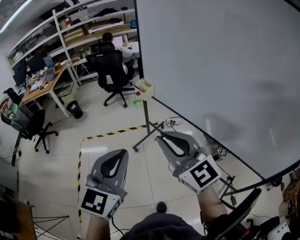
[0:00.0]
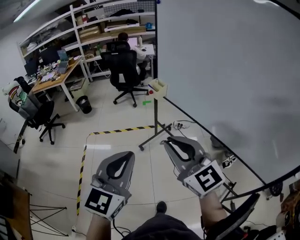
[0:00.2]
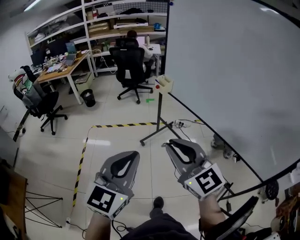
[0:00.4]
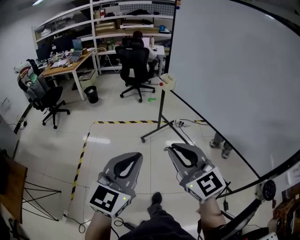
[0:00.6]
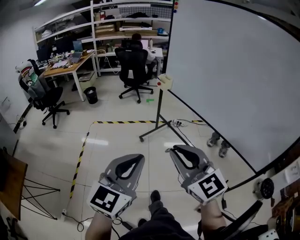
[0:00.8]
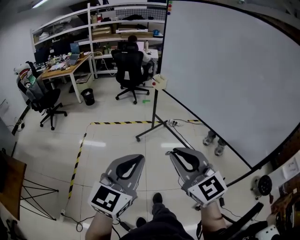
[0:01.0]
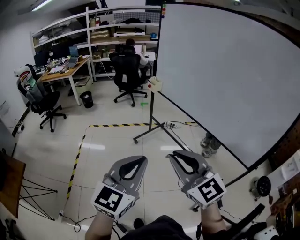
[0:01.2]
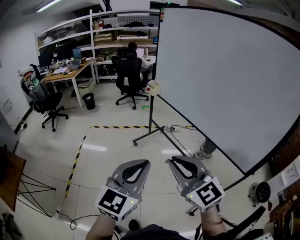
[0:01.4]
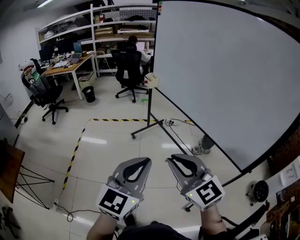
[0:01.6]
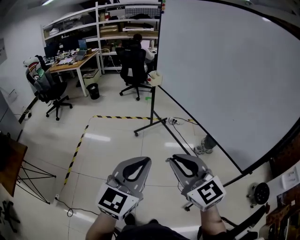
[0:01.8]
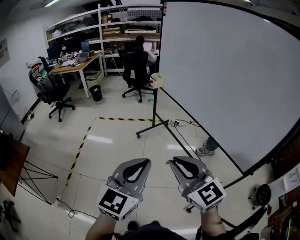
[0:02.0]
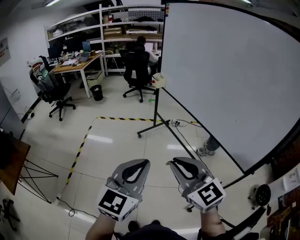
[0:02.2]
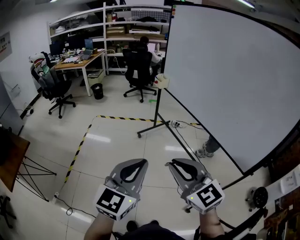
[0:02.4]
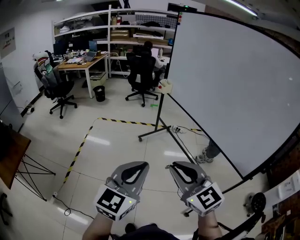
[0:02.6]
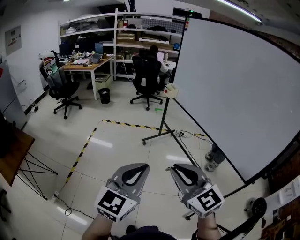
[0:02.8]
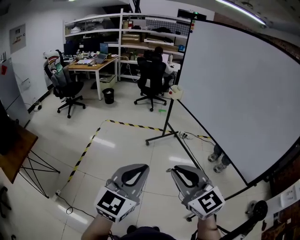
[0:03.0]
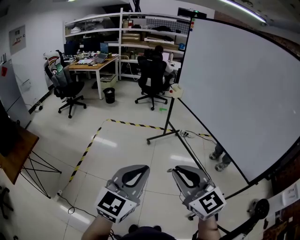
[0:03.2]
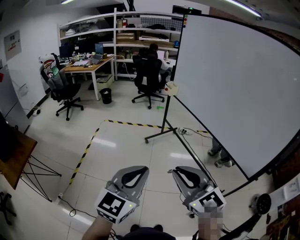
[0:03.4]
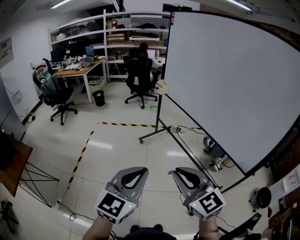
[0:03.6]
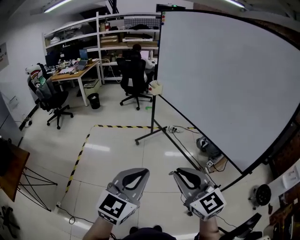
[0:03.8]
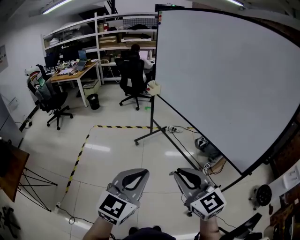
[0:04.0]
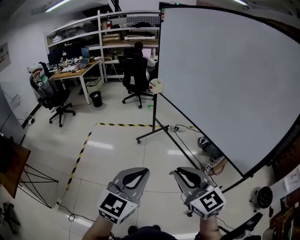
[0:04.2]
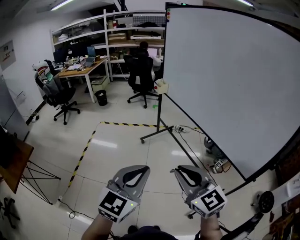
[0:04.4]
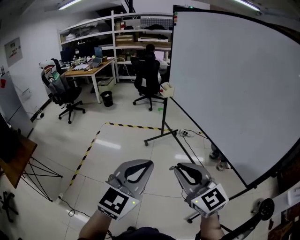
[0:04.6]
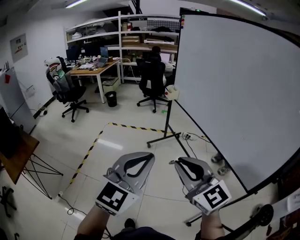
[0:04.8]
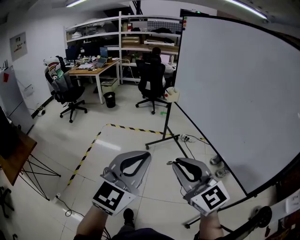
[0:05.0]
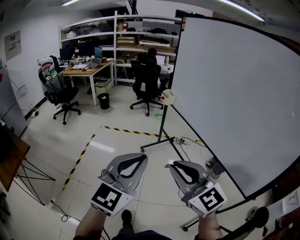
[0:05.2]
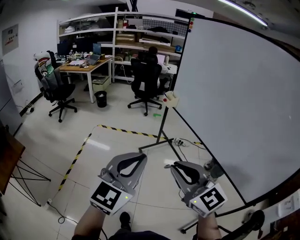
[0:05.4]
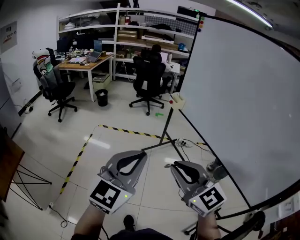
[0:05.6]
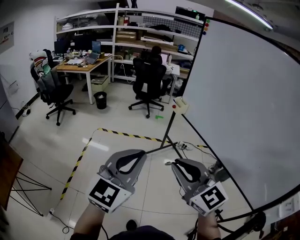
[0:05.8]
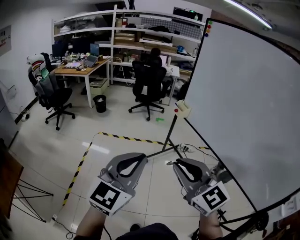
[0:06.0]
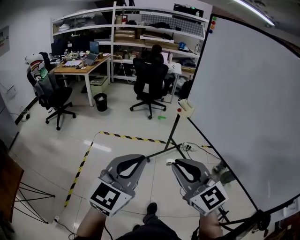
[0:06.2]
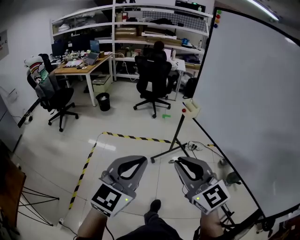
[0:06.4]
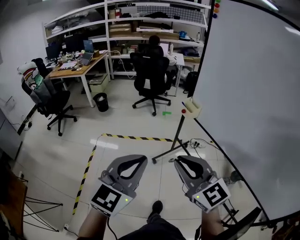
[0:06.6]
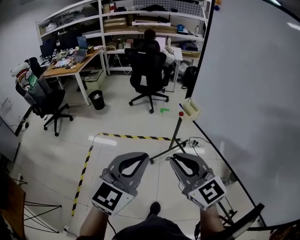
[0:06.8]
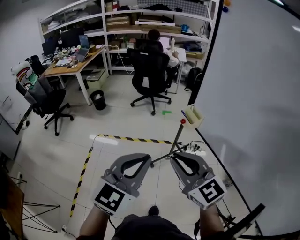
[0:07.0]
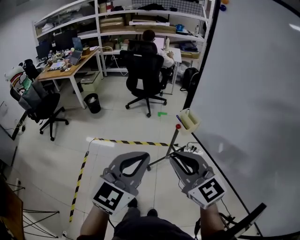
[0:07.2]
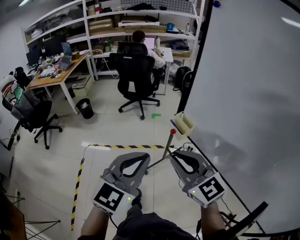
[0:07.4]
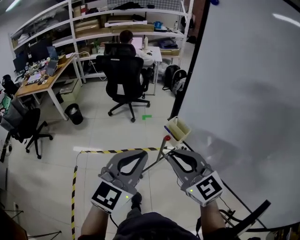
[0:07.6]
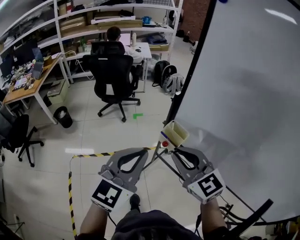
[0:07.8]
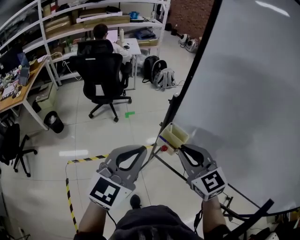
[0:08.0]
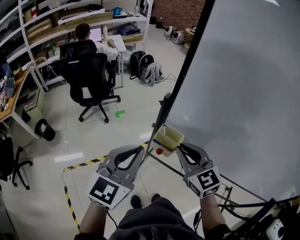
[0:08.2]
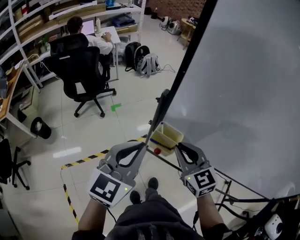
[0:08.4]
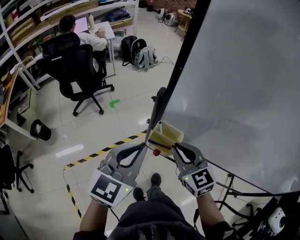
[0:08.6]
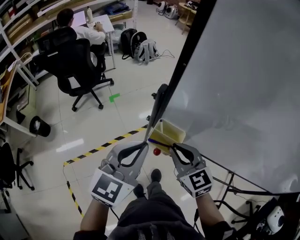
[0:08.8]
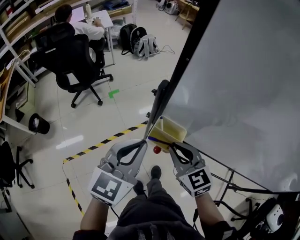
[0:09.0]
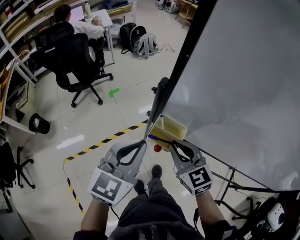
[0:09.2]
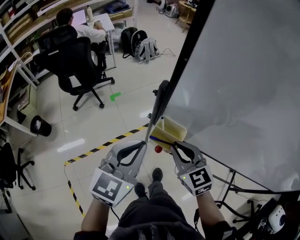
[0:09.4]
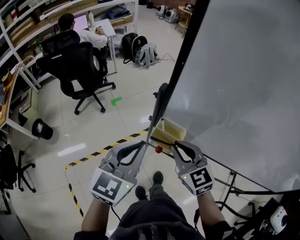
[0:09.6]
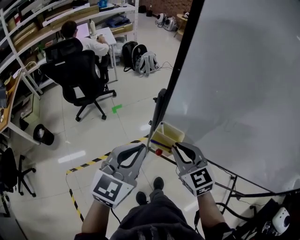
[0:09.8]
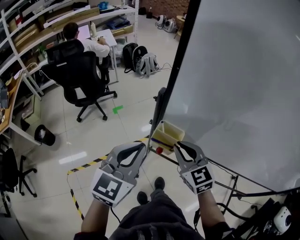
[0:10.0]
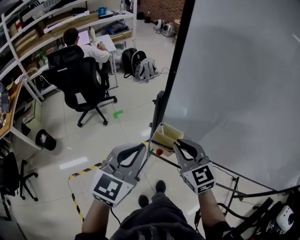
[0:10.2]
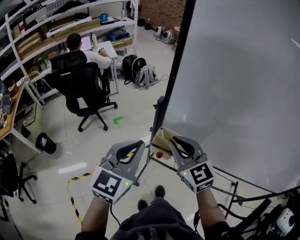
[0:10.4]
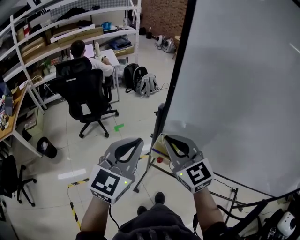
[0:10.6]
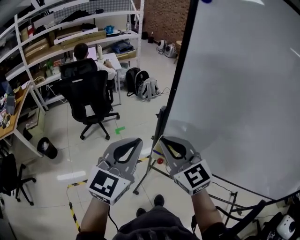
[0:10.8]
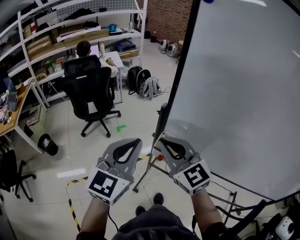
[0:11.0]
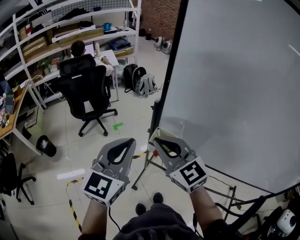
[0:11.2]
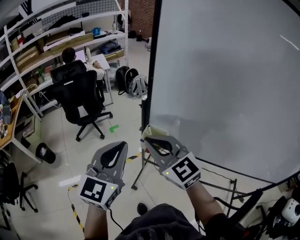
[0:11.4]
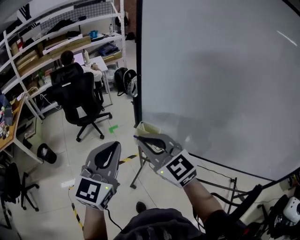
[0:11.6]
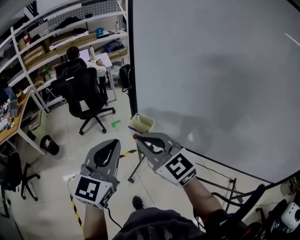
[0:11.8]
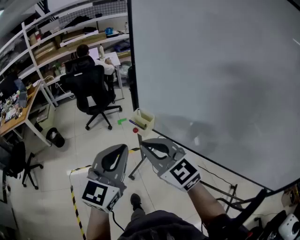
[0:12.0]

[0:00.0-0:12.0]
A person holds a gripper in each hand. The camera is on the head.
0:00.0 to 0:01.6: Both grippers travel together backward, approximately 35 cm.
0:01.6 to 0:03.0: The right gripper heads to the left and backward, covering roughly 10 cm. The left gripper moves to the left, about 10 cm.
0:03.0 to 0:04.4: Both grippers travel together to the right, approximately 15 cm.
0:04.4 to 0:06.0: The grippers both shift forward and to the left by approximately 35 cm.
0:06.0 to 0:07.6: Both grippers are carried forward, about 50 cm.
0:07.6 to 0:09.0: The left gripper moves roughly 25 cm, and rotates roughly 30 degrees. The right gripper ends up about 25 cm from where it was, and turns by about 40 degrees.
0:09.0 to 0:10.4: The left gripper moves upward, approximately 5 cm. The right gripper shifts some 10 cm upward.
0:10.4 to 0:12.0: Both grippers move backward, about 20 cm. The right gripper turns by about 30 degrees.

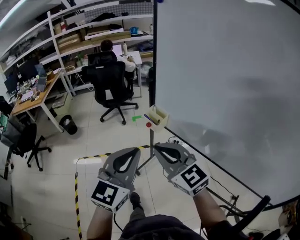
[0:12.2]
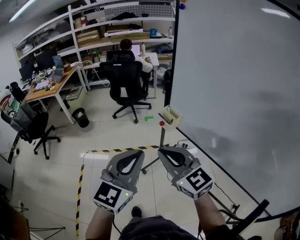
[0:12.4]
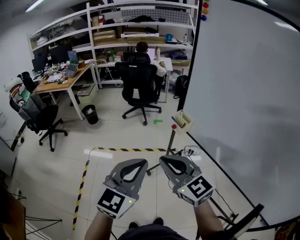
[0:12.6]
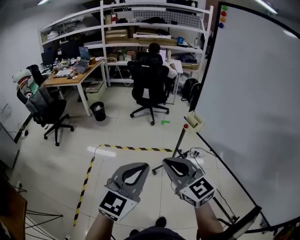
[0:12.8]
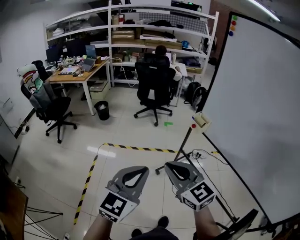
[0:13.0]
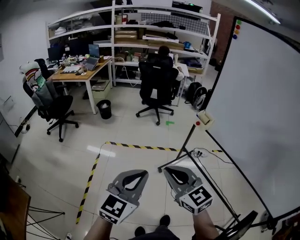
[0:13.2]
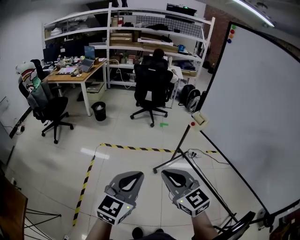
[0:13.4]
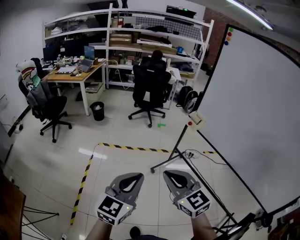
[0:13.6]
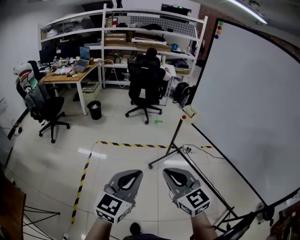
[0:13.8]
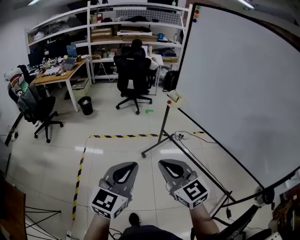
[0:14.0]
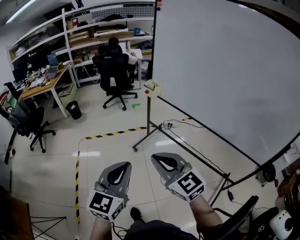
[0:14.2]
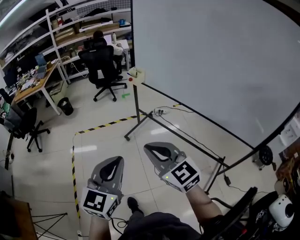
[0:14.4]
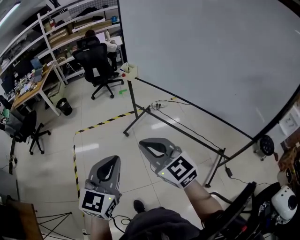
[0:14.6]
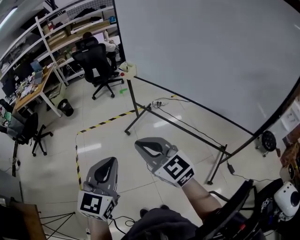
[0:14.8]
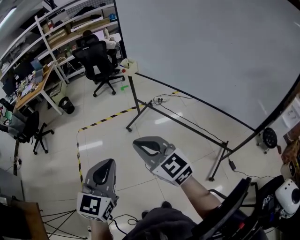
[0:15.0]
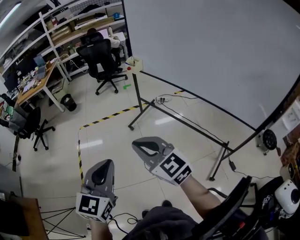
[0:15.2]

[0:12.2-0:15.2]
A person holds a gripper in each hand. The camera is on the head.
0:12.2 to 0:13.8: Both grippers move backward and to the left, about 35 cm.
0:13.8 to 0:15.2: The two grippers go roughly 25 cm backward and to the right.

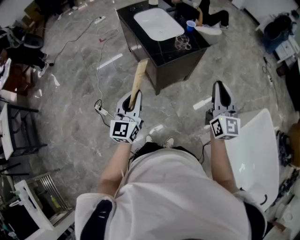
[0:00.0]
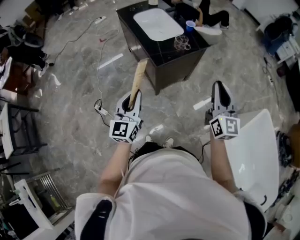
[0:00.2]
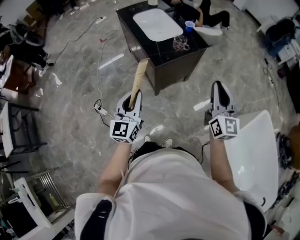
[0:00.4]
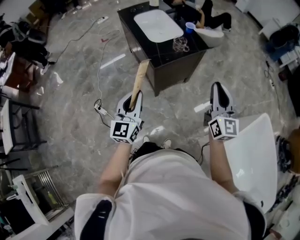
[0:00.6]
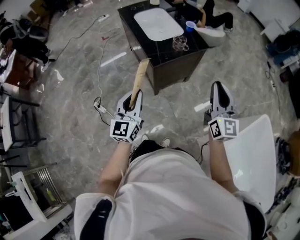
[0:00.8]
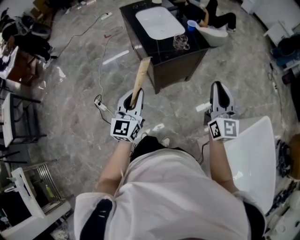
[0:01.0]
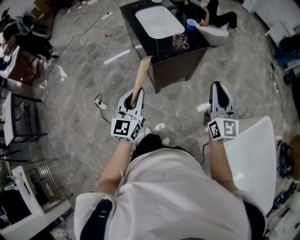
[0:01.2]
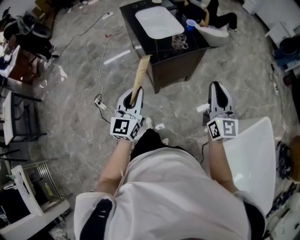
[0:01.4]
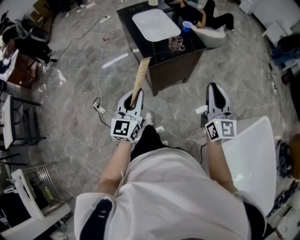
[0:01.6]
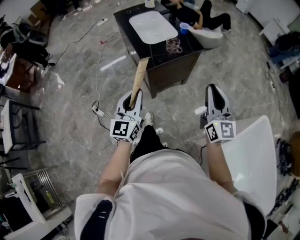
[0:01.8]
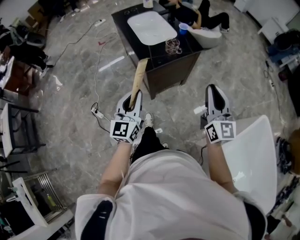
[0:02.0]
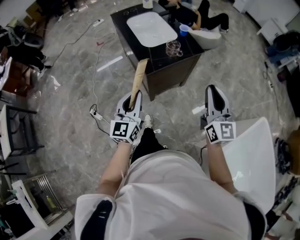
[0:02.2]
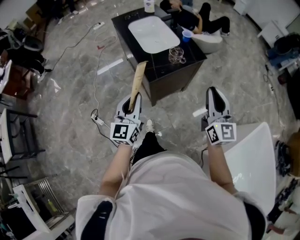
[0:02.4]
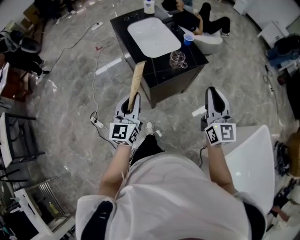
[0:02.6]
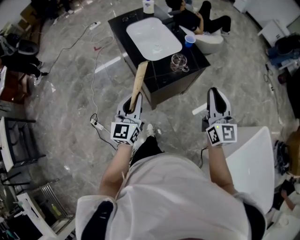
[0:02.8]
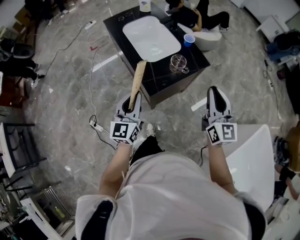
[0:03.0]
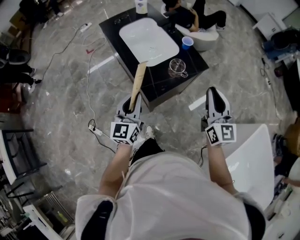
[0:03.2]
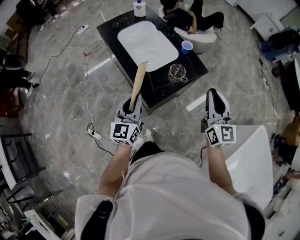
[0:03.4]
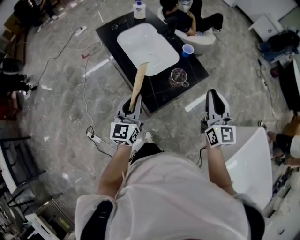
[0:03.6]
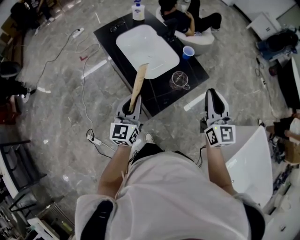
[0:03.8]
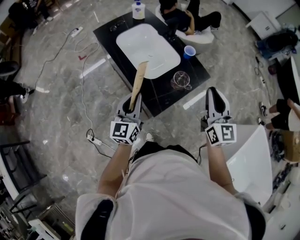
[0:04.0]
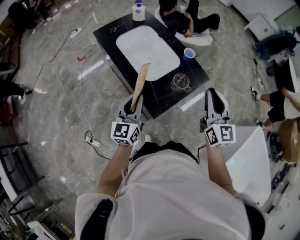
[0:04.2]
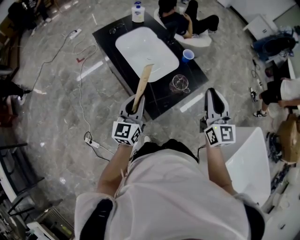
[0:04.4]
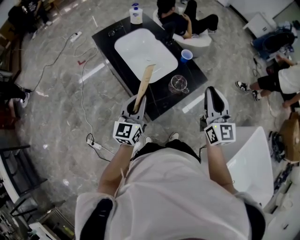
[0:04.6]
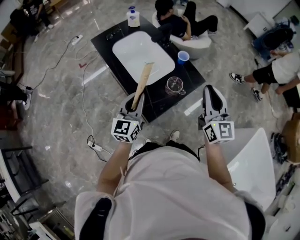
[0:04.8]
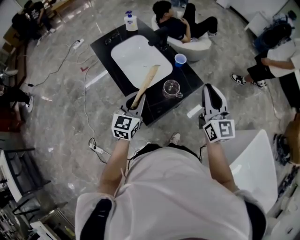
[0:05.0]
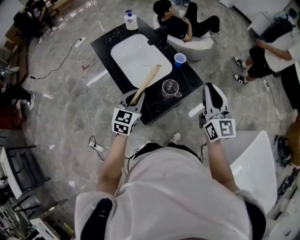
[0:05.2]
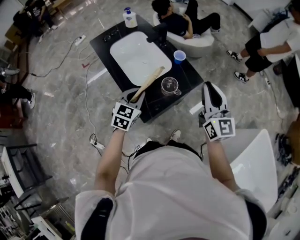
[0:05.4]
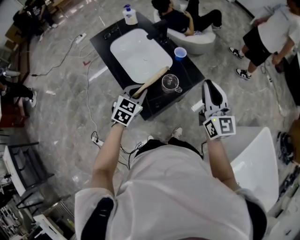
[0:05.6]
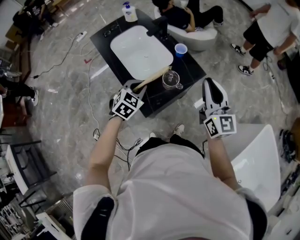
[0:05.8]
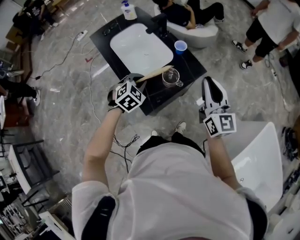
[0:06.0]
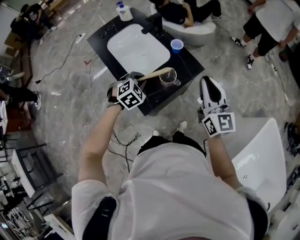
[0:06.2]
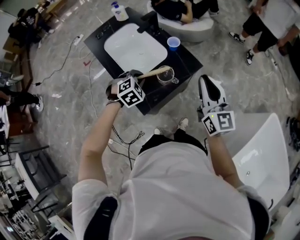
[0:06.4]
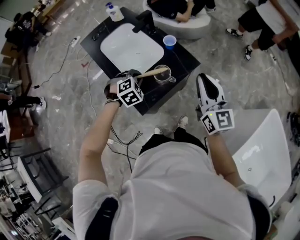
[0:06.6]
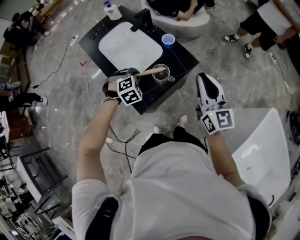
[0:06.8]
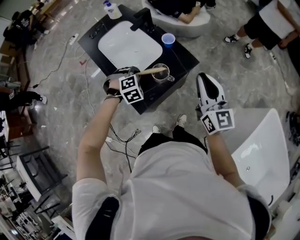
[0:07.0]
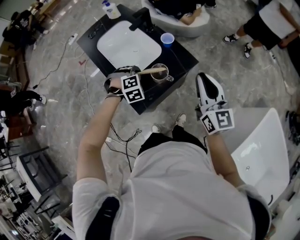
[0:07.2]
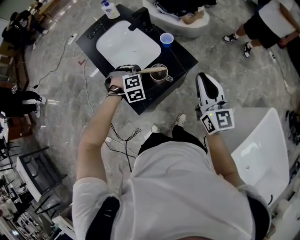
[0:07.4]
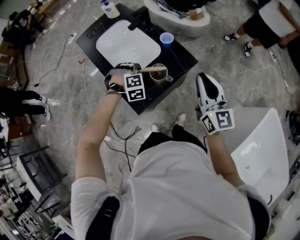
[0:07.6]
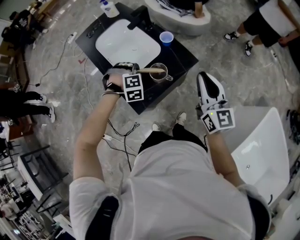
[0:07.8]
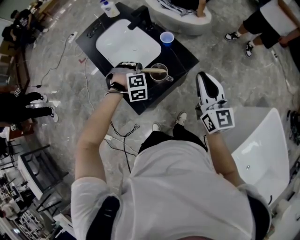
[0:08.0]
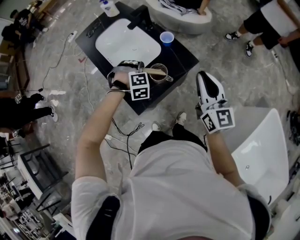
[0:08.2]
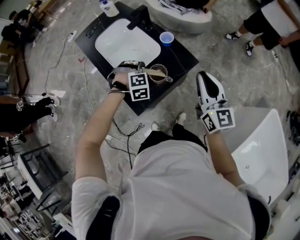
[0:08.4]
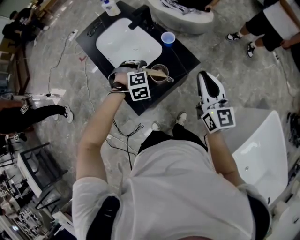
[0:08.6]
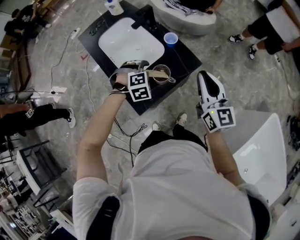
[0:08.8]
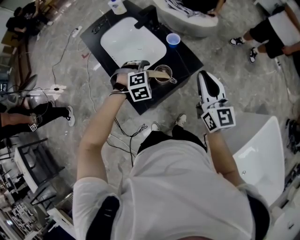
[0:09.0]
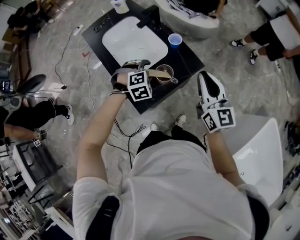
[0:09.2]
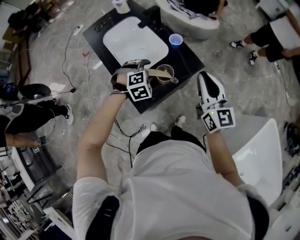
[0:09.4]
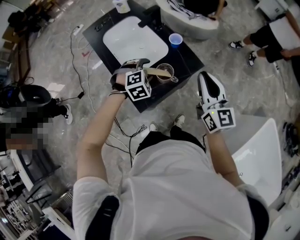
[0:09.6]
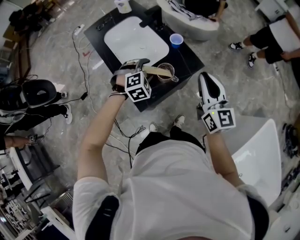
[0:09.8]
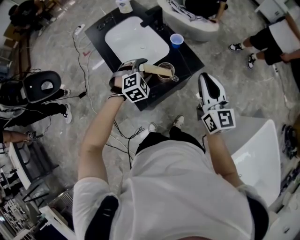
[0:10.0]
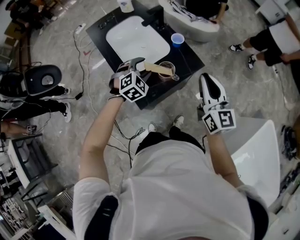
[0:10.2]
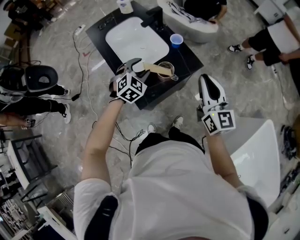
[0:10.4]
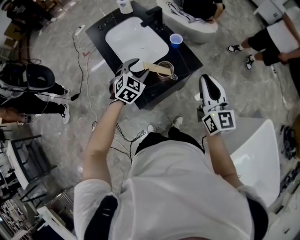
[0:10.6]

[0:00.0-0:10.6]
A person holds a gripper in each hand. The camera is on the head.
0:00.0 to 0:01.6: The left gripper moves to the right, roughly 10 cm.
0:01.6 to 0:03.0: Both grippers move forward, roughly 20 cm.
0:03.0 to 0:04.6: The right gripper travels forward and to the left by roughly 10 cm. The left gripper heads forward, covering about 15 cm.
0:04.6 to 0:06.0: The left gripper is displaced downward, forward and to the right by roughly 15 cm, and tips its fingers downward by roughly 50 degrees. Meanwhile the right gripper is displaced to the right by about 5 cm.
0:06.0 to 0:07.6: The left gripper moves downward and forward, roughly 10 cm, and turns by roughly 40 degrees.
0:07.6 to 0:09.0: The left gripper opens.
0:09.0 to 0:10.6: The left gripper travels upward by some 5 cm, and rotates some 40 degrees.
